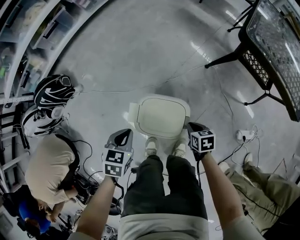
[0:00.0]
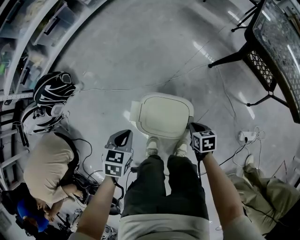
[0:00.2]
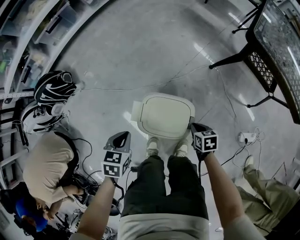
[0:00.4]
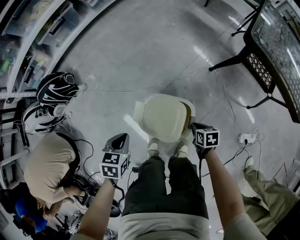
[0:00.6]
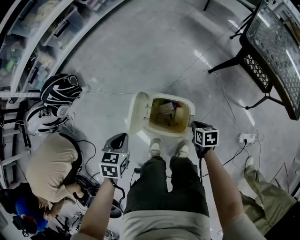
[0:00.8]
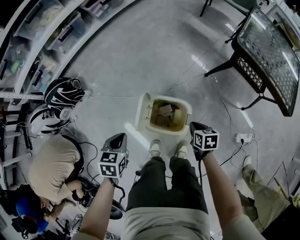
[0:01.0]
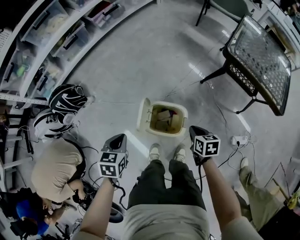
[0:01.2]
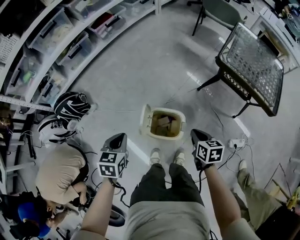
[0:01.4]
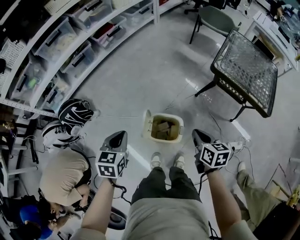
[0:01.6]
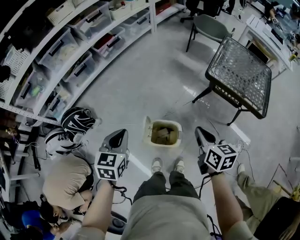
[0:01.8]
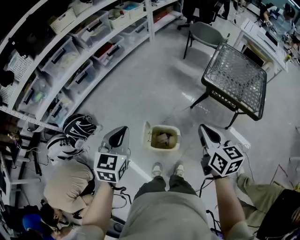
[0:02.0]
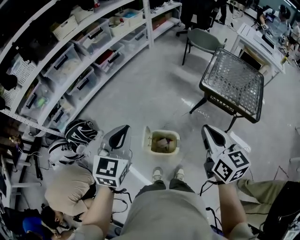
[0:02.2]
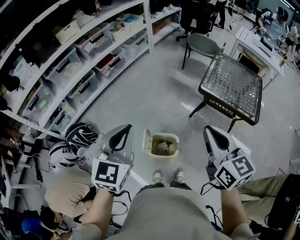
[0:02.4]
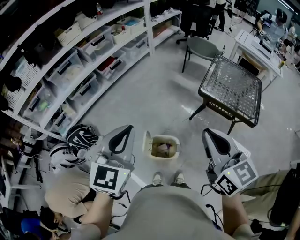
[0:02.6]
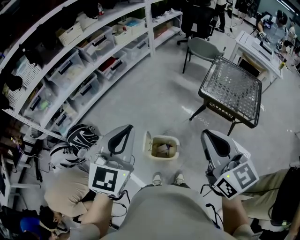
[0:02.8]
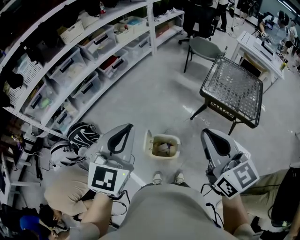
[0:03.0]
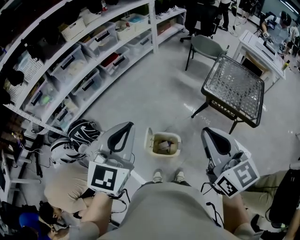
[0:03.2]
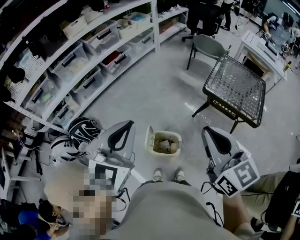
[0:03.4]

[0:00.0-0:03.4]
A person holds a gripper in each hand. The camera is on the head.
0:00.0 to 0:01.6: The grippers both shift upward by roughly 35 cm. The right gripper changes its angle by about 30 degrees.
0:01.6 to 0:03.4: Both grippers travel together upward, approximately 35 cm. The left gripper turns by about 30 degrees. Meanwhile the right gripper points its fingers about 30 degrees further upward.

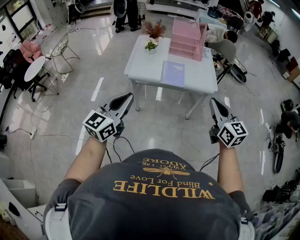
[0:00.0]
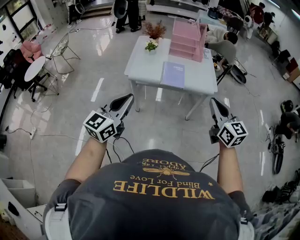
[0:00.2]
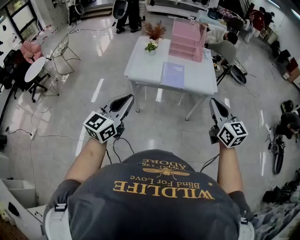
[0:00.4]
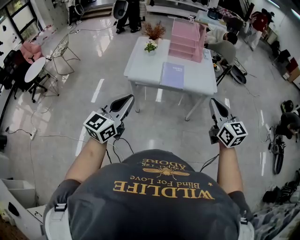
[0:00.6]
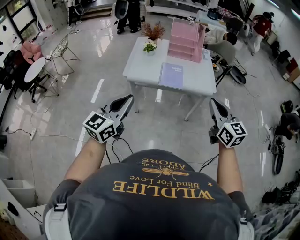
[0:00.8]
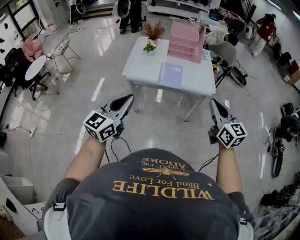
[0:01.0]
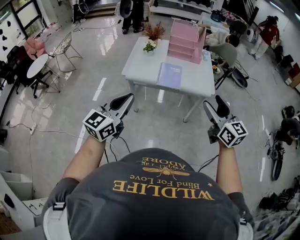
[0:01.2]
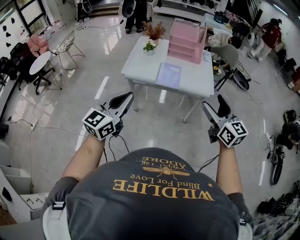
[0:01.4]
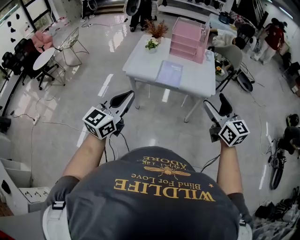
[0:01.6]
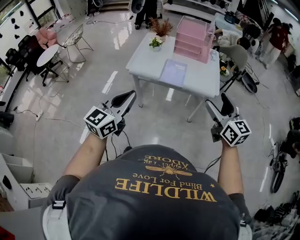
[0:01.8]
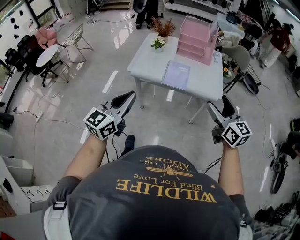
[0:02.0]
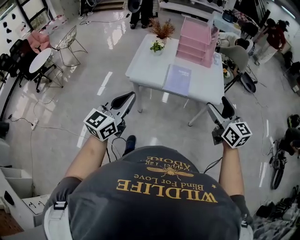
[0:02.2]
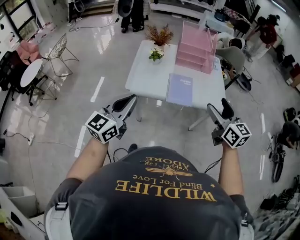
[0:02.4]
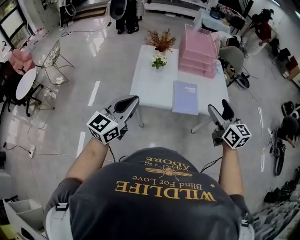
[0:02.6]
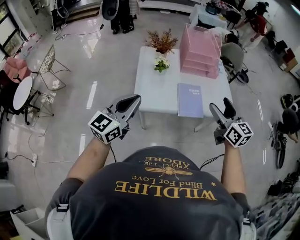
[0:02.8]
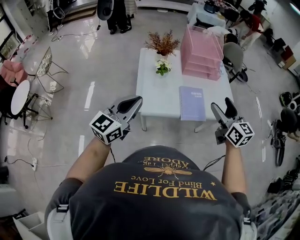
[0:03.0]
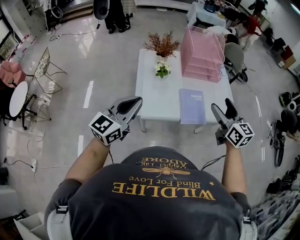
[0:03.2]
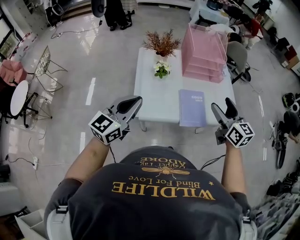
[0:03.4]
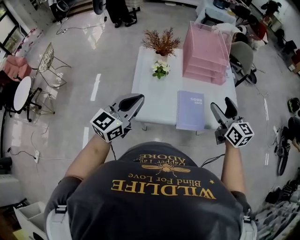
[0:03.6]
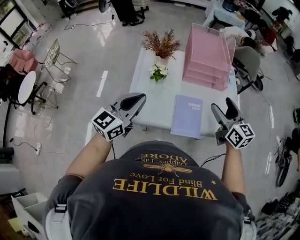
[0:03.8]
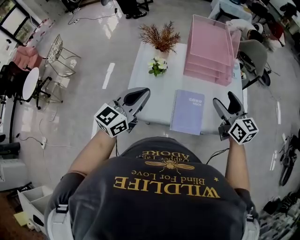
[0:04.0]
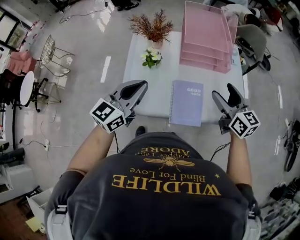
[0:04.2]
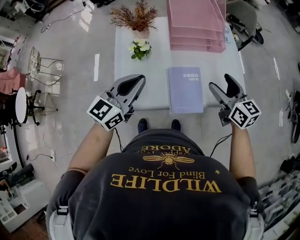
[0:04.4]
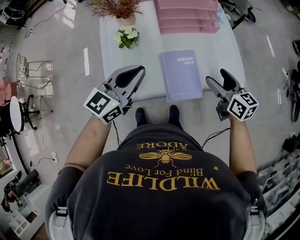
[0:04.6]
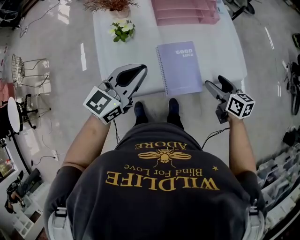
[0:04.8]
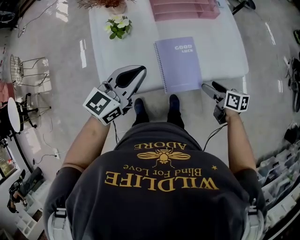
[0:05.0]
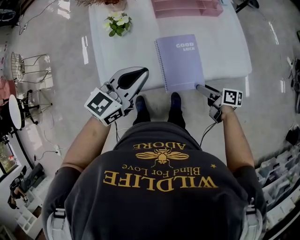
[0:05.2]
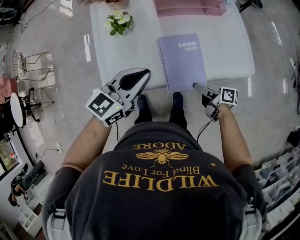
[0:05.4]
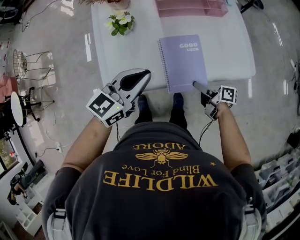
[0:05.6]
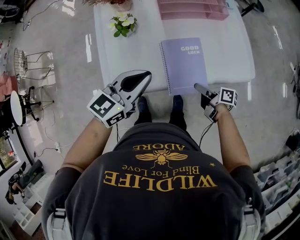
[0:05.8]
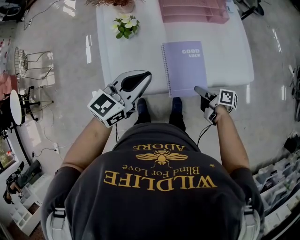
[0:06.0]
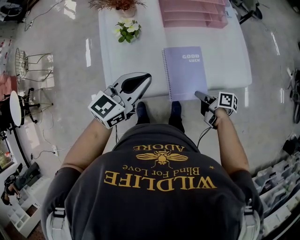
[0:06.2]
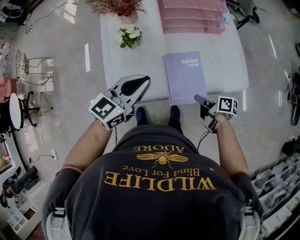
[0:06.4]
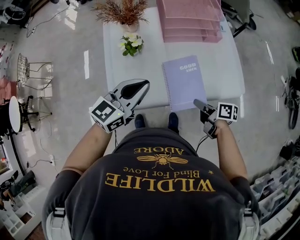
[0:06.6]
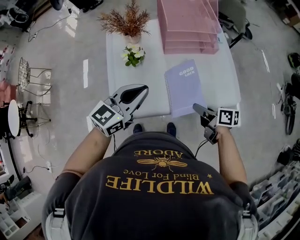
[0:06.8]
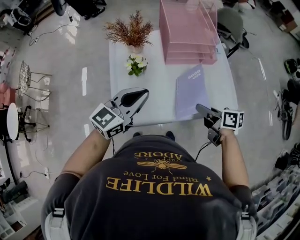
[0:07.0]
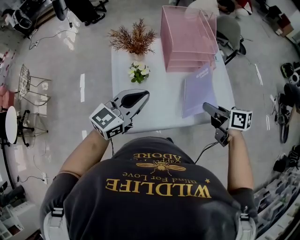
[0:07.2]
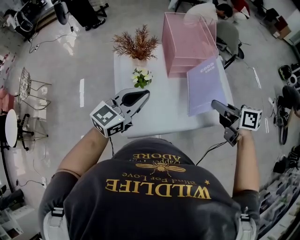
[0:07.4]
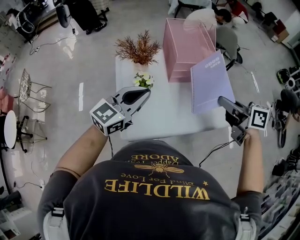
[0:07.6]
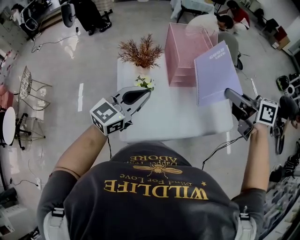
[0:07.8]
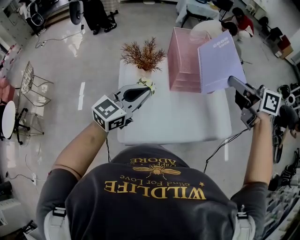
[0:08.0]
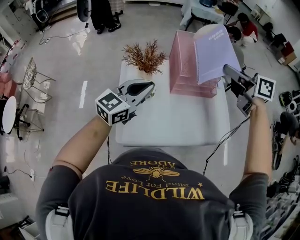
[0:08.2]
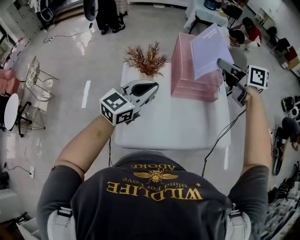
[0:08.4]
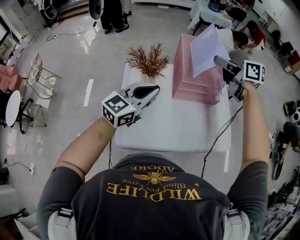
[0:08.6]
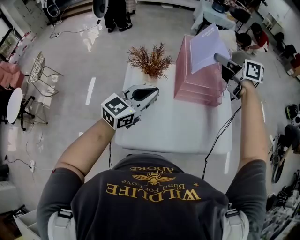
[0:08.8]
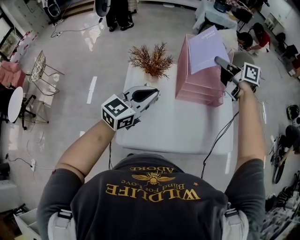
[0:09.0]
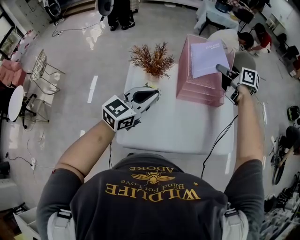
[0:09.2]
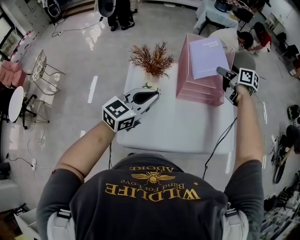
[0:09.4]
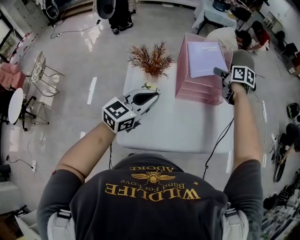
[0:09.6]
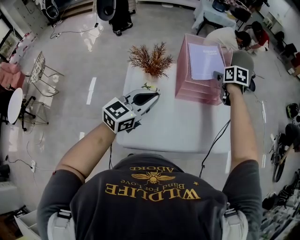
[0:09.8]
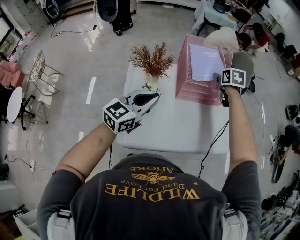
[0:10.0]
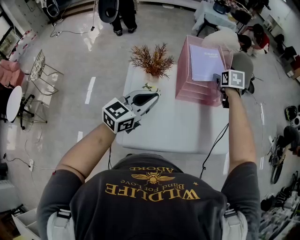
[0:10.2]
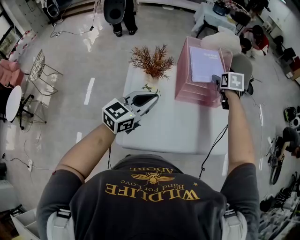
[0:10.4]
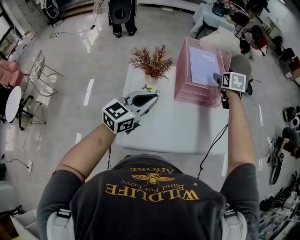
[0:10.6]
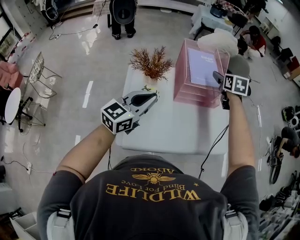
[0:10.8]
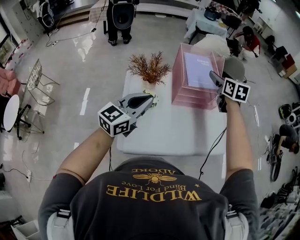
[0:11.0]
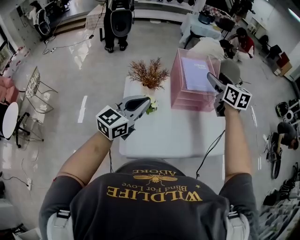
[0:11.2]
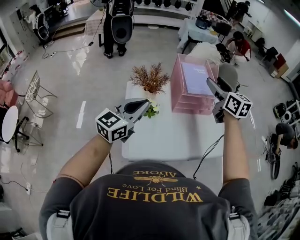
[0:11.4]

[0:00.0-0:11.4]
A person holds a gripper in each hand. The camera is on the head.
0:00.0 to 0:01.4: Both grippers travel together to the right, some 5 cm. The right gripper opens its fingers.
0:01.4 to 0:02.8: Both grippers travel together forward and to the left, roughly 35 cm.
0:02.8 to 0:04.2: The right gripper goes about 20 cm forward; the left gripper heads forward and to the right, covering roughly 25 cm.
0:04.2 to 0:05.6: The right gripper heads downward, covering some 30 cm, and twists about 60 degrees clockwise, seen from behind. The left gripper is displaced downward and to the right by some 15 cm, and rotates roughly 20 degrees.
0:05.6 to 0:07.2: The left gripper shifts some 15 cm upward, to the left and forward, while the right gripper shifts about 25 cm upward, changes its angle by approximately 30 degrees, and closes.
0:07.2 to 0:08.6: The left gripper shifts about 10 cm forward, while the right gripper shifts some 35 cm forward and upward, and swivels some 20 degrees.
0:08.6 to 0:10.0: The right gripper moves downward, some 15 cm, rotates approximately 40 degrees, and opens.
0:10.0 to 0:11.4: The right gripper is displaced upward and backward by about 25 cm, tips its fingers upward by some 40 degrees, and opens. The left gripper goes approximately 10 cm upward and to the left.

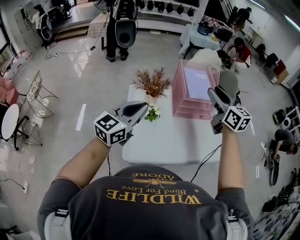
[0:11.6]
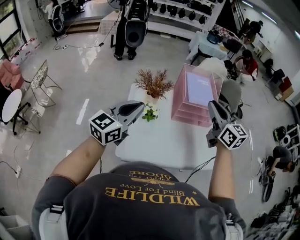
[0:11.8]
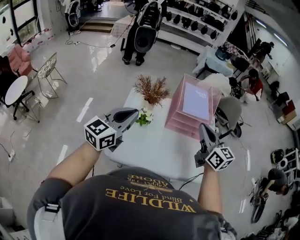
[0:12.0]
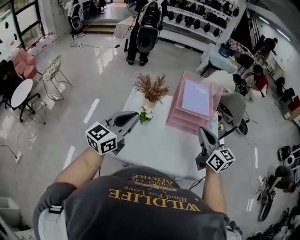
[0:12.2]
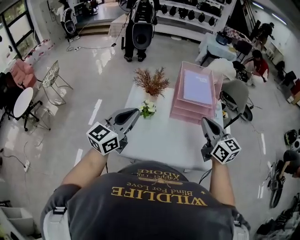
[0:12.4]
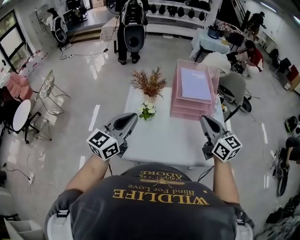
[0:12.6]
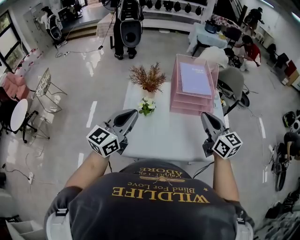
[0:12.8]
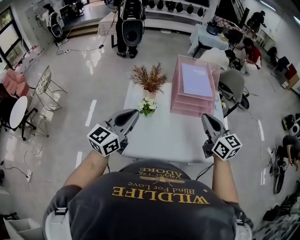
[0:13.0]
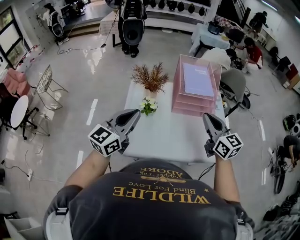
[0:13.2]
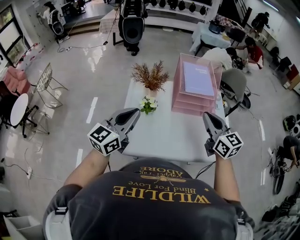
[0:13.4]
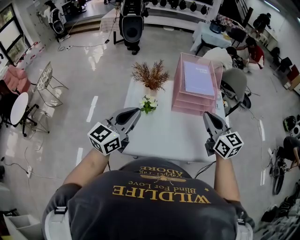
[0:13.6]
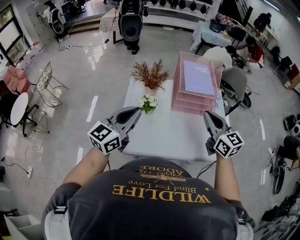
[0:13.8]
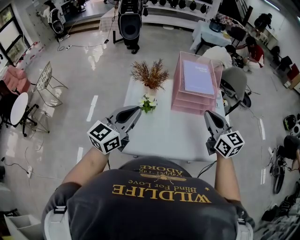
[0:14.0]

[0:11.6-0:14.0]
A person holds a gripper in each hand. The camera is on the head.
0:11.6 to 0:12.8: The left gripper shifts approximately 5 cm backward, while the right gripper is displaced backward and downward by roughly 15 cm, and closes up.
0:12.8 to 0:14.0: There are only small adjustments of the grippers.

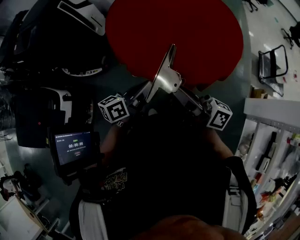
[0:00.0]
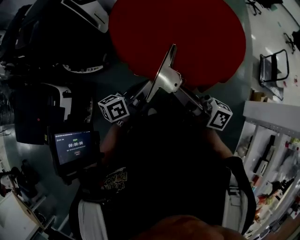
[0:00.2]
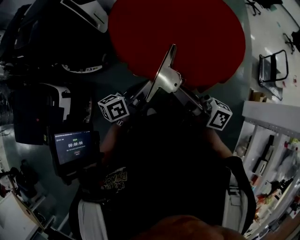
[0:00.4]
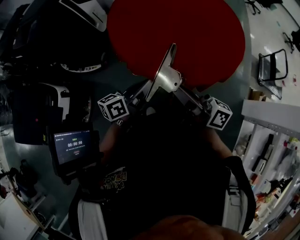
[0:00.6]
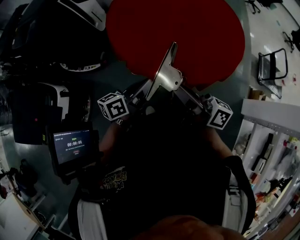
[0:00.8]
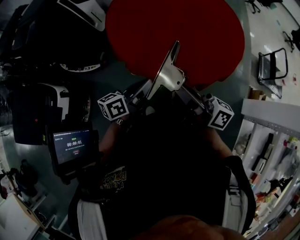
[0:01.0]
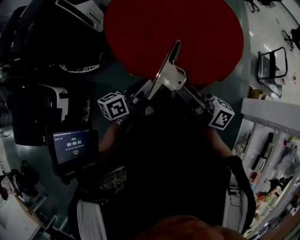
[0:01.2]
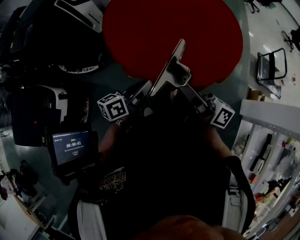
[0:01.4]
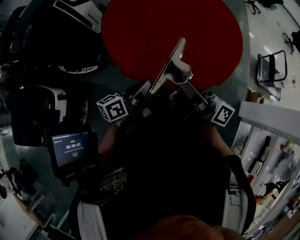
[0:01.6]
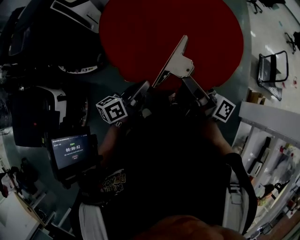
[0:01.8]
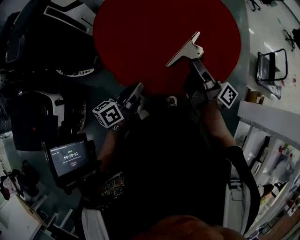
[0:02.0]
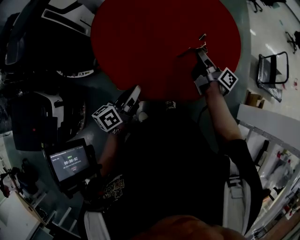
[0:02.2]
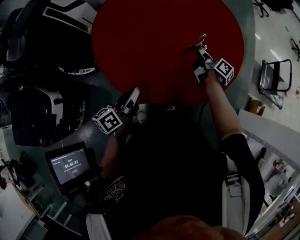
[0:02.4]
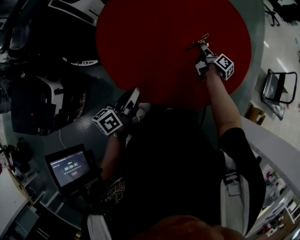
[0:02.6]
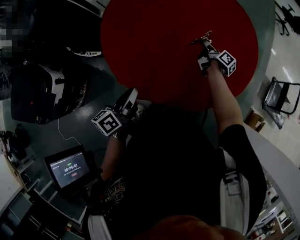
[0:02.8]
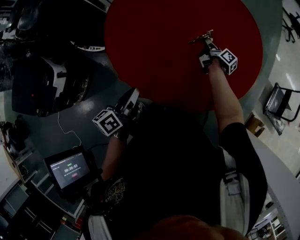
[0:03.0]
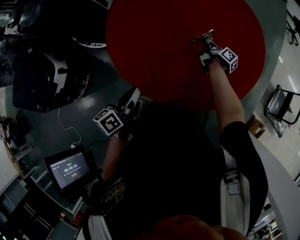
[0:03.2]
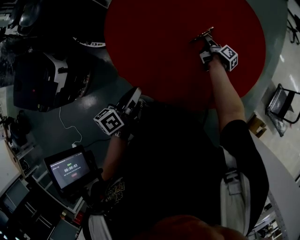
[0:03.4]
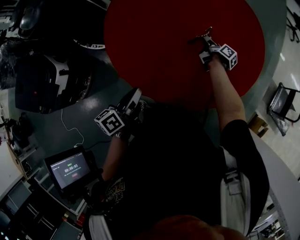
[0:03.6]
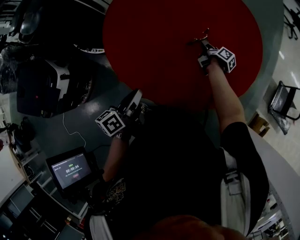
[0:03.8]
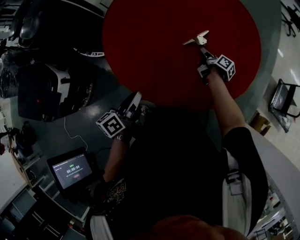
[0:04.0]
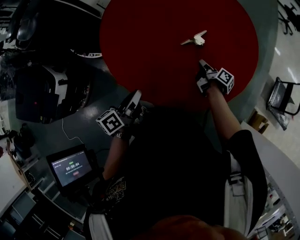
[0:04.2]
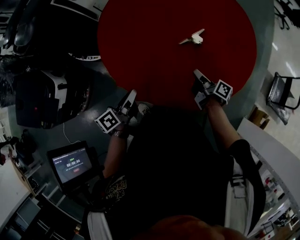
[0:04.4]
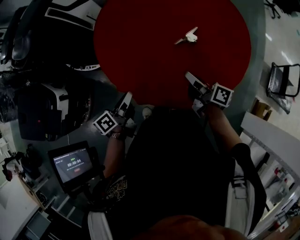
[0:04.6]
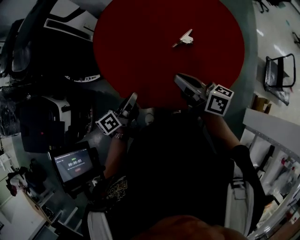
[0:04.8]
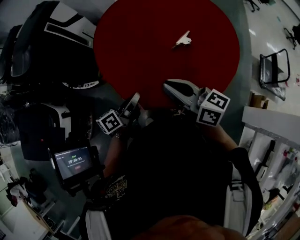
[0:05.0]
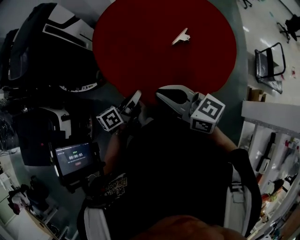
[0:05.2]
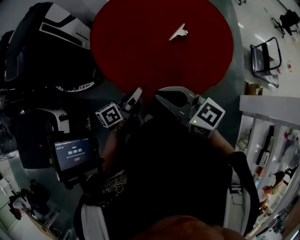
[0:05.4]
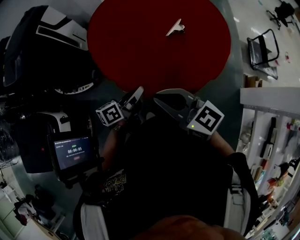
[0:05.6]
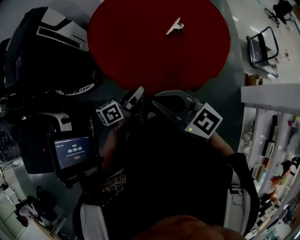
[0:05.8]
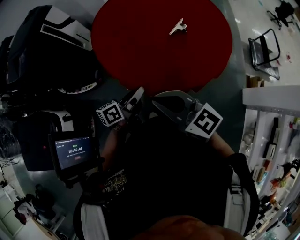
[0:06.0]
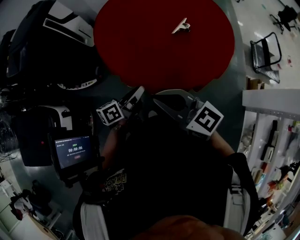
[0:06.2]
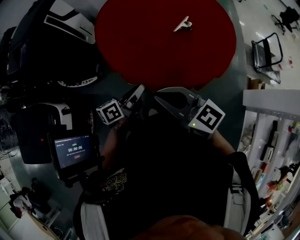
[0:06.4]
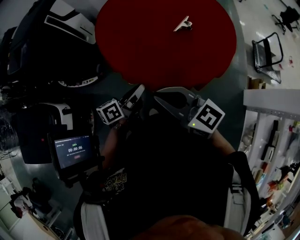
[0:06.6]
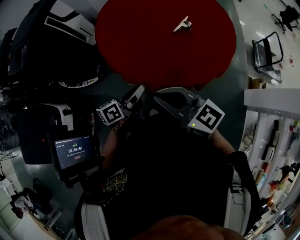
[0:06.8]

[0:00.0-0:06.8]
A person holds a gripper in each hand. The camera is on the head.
0:00.0 to 0:01.4: There are only small adjustments of the grippers.
0:01.4 to 0:02.8: The right gripper travels forward, downward and to the right by some 60 cm, and tips its fingers downward by approximately 40 degrees; the left gripper heads forward, covering roughly 10 cm, and changes its angle by roughly 30 degrees.
0:02.8 to 0:04.0: The right gripper moves about 5 cm.
0:04.0 to 0:05.4: The left gripper moves to the left, roughly 10 cm, and changes its angle by some 30 degrees. Meanwhile the right gripper heads upward, to the left and backward, covering approximately 50 cm, twists some 70 degrees counterclockwise, seen from behind, and closes its fingers.
0:05.4 to 0:06.8: There are only small adjustments of the grippers.
